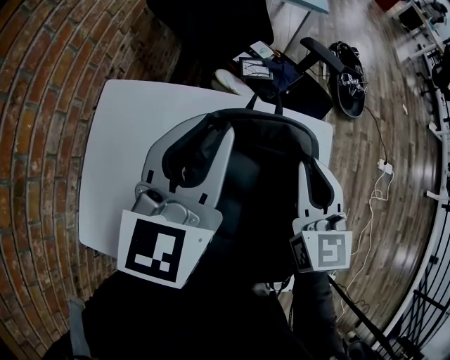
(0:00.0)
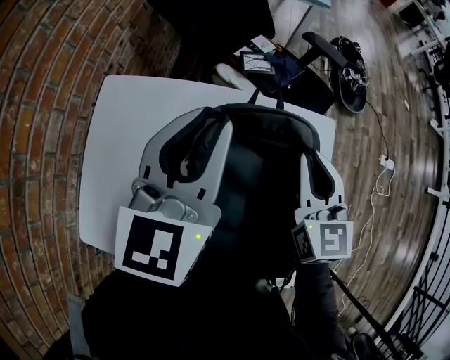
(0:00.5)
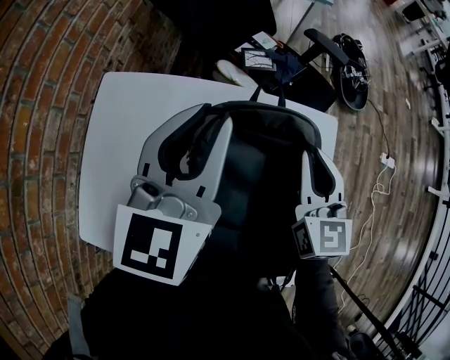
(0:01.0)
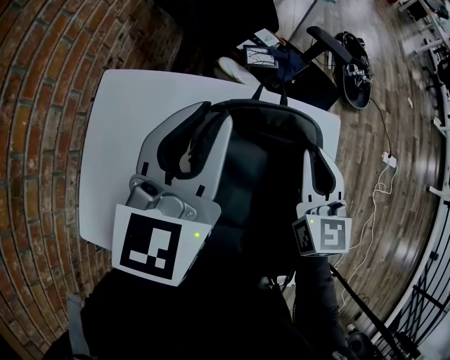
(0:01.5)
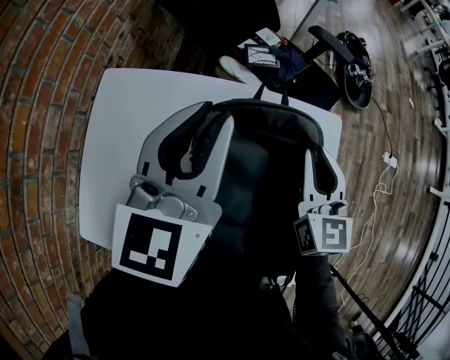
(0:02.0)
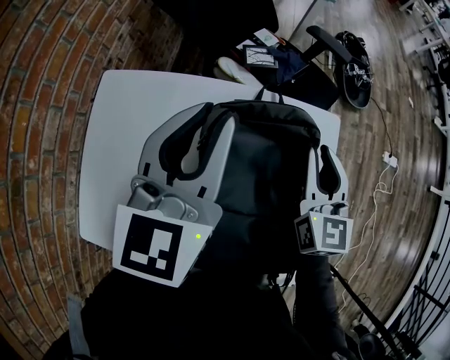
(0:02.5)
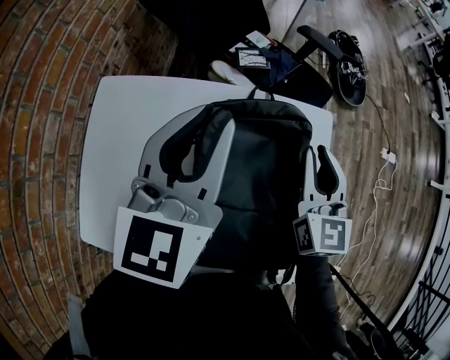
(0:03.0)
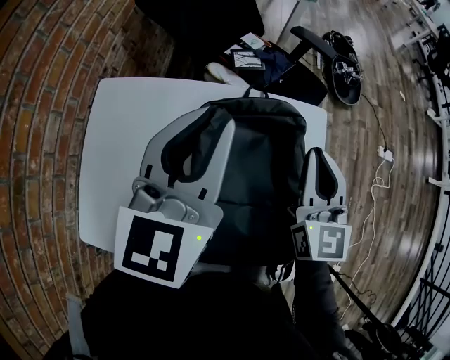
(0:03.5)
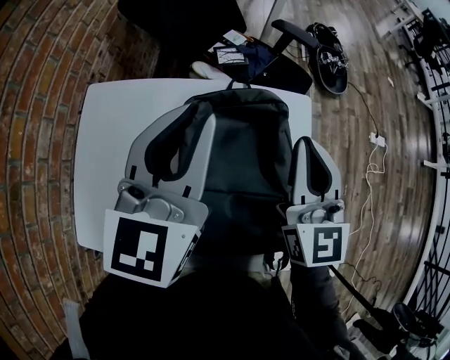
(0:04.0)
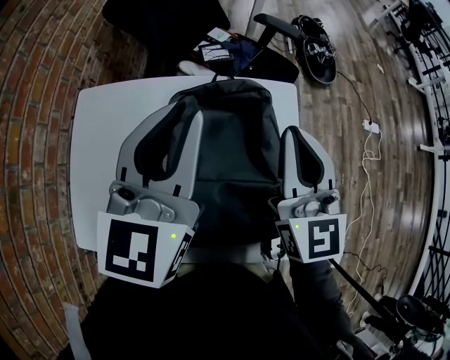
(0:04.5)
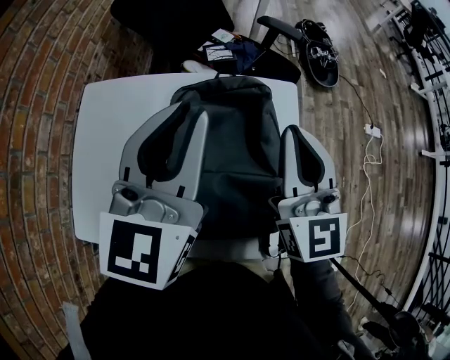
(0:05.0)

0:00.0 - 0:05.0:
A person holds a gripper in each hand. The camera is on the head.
0:00.0 - 0:02.5: The right gripper moves about 5 cm.
0:02.5 - 0:05.0: The left gripper shifts roughly 15 cm backward, to the right and upward. Meanwhile the right gripper goes some 15 cm upward and backward.

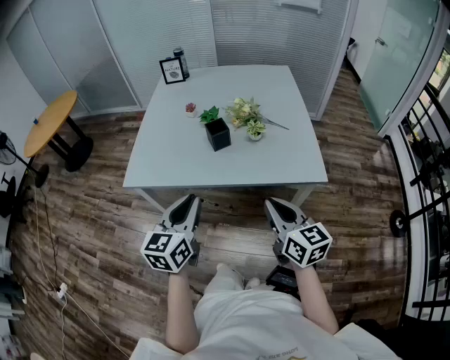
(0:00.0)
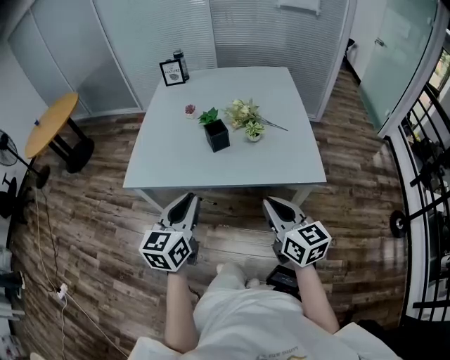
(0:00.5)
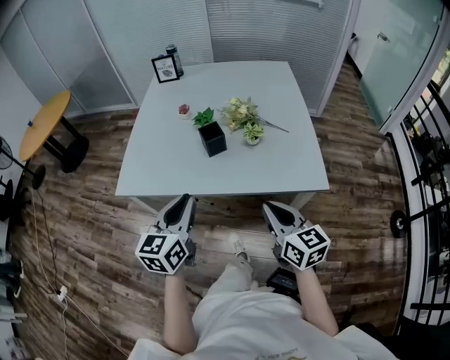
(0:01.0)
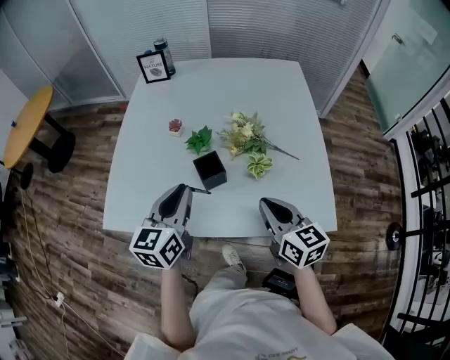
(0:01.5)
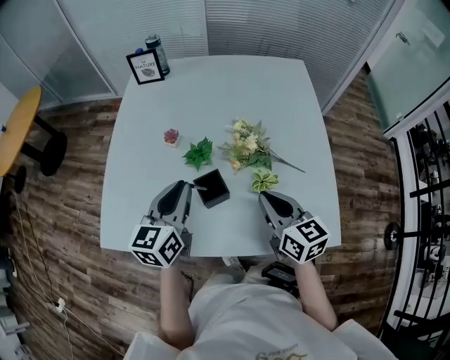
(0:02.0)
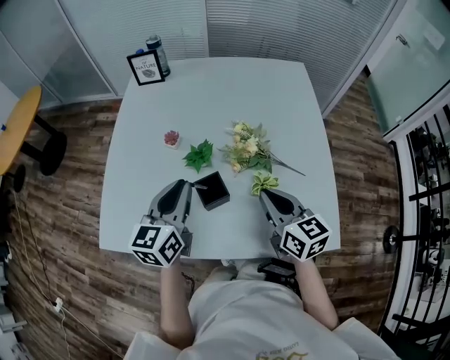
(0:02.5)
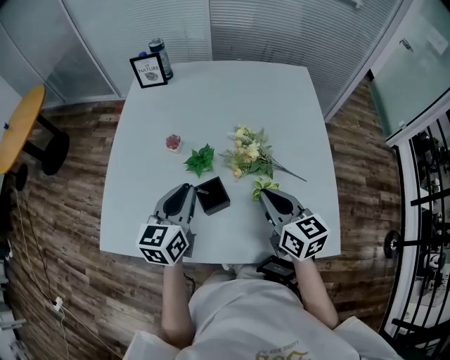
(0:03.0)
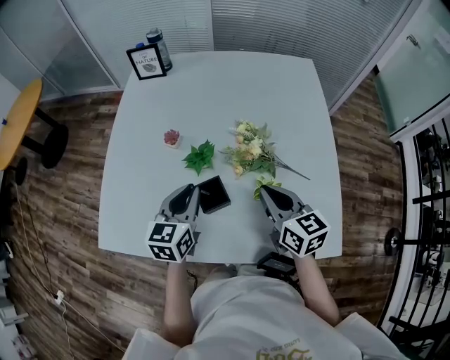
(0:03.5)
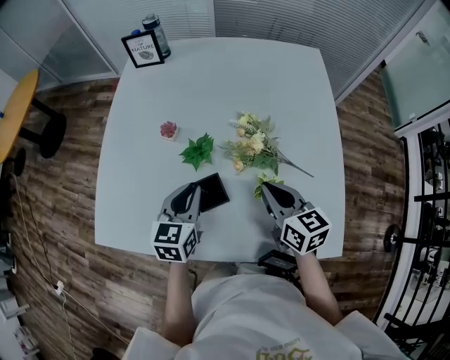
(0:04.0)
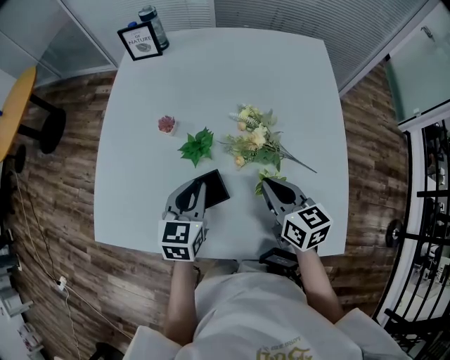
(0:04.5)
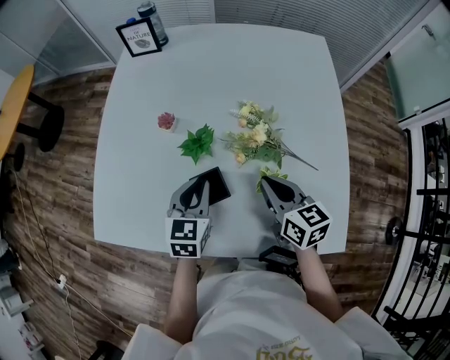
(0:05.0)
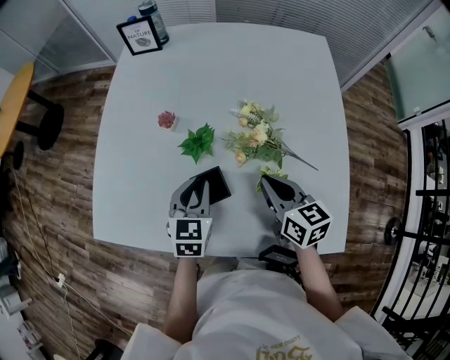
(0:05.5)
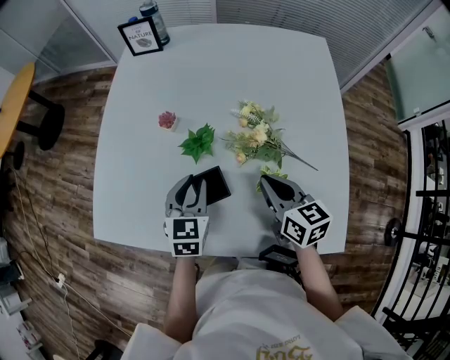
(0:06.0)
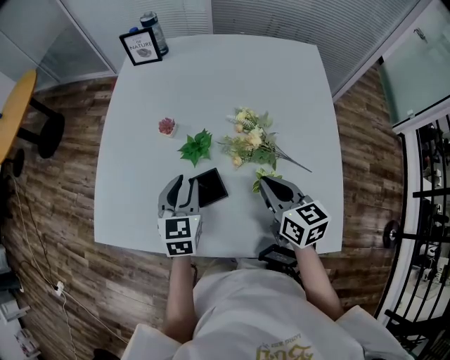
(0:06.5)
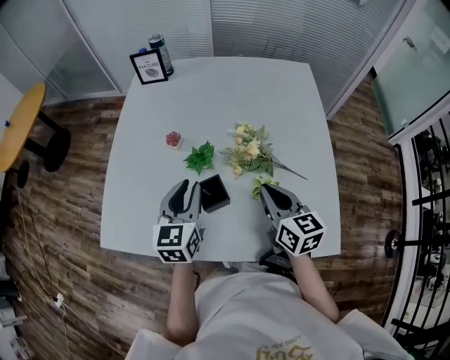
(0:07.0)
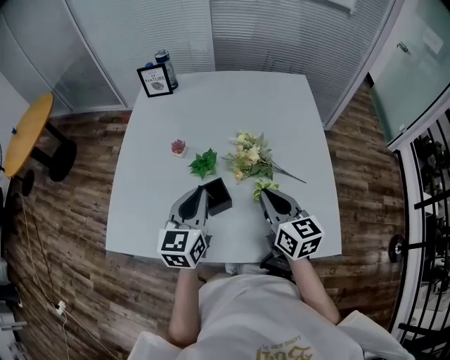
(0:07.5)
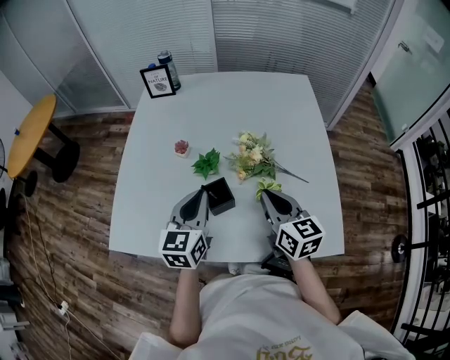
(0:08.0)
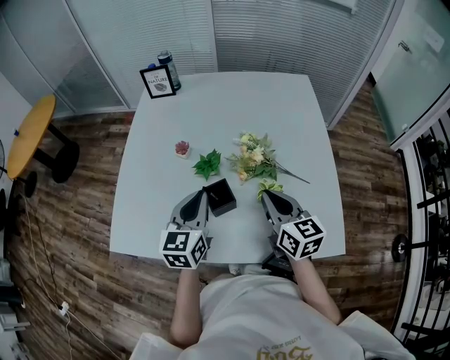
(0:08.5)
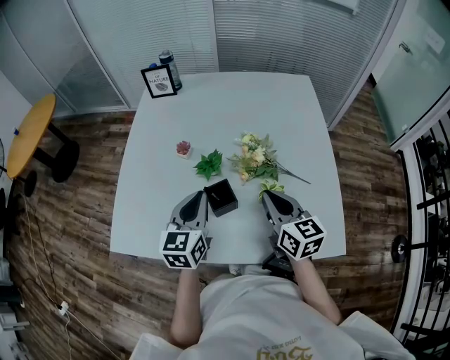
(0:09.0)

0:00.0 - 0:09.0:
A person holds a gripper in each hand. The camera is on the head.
0:00.0 - 0:02.0: Both grippers travel together forward, approximately 40 cm.
0:02.0 - 0:04.5: The right gripper moves forward and downward, approximately 10 cm. The left gripper moves downward, about 10 cm.
0:04.5 - 0:07.0: Both grippers travel together upward, some 5 cm.
0:07.0 - 0:09.0: The left gripper closes.

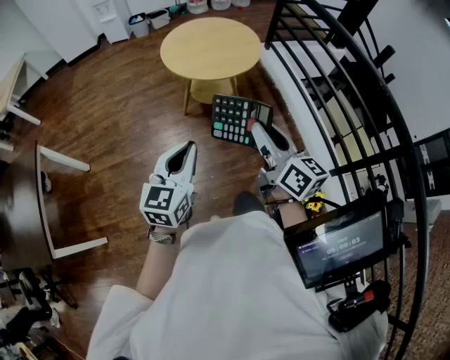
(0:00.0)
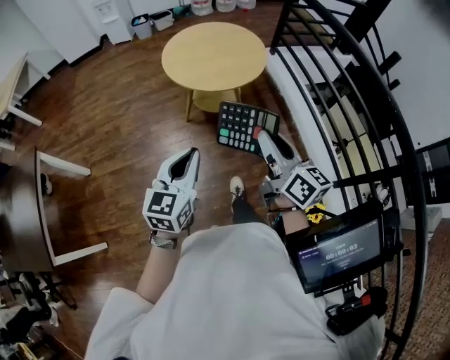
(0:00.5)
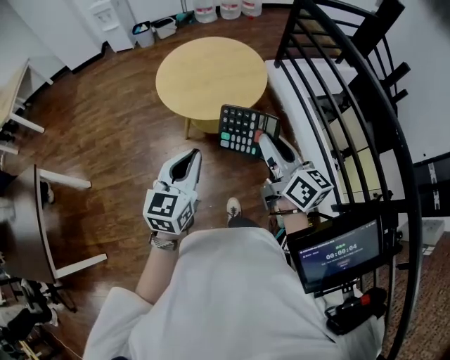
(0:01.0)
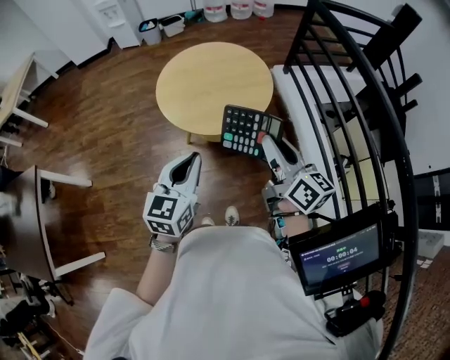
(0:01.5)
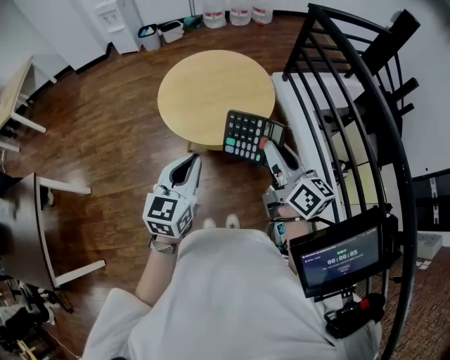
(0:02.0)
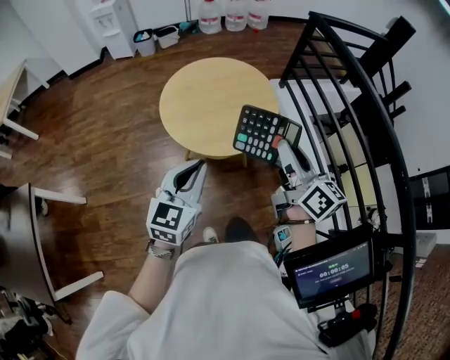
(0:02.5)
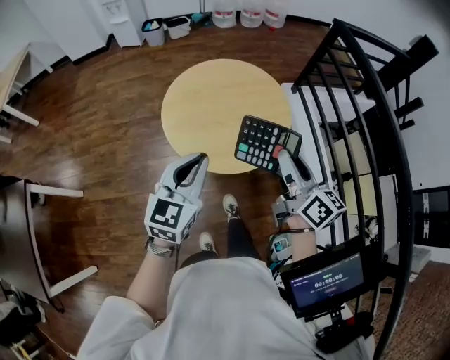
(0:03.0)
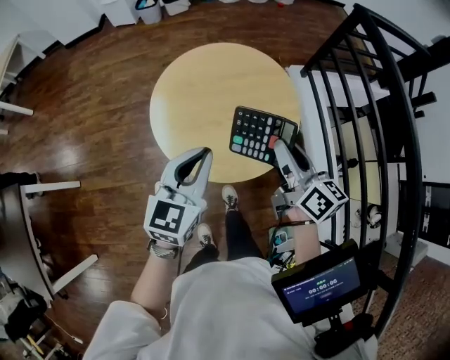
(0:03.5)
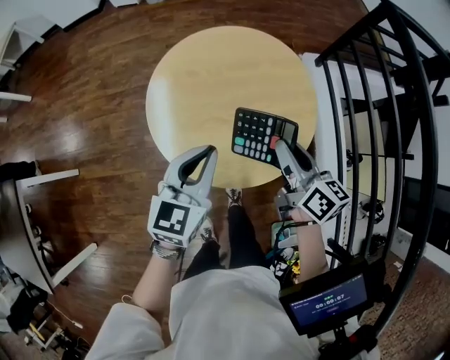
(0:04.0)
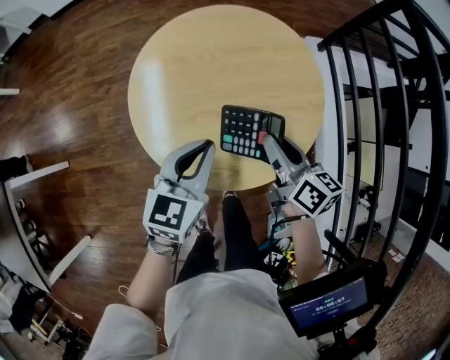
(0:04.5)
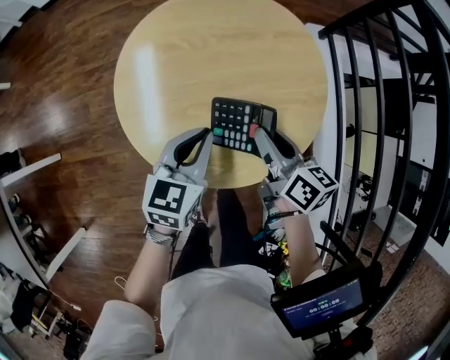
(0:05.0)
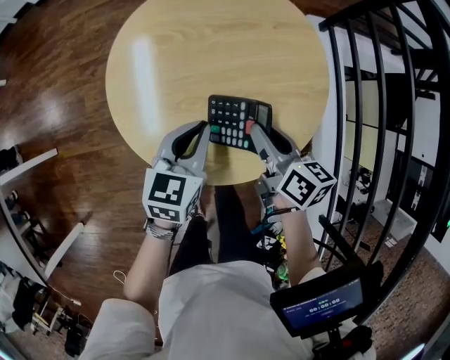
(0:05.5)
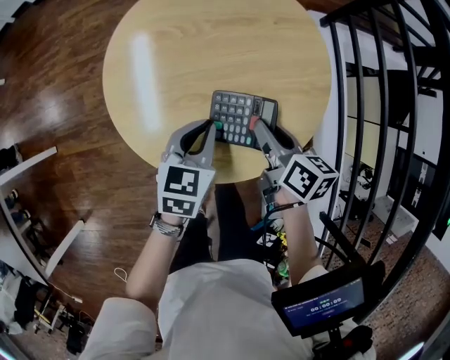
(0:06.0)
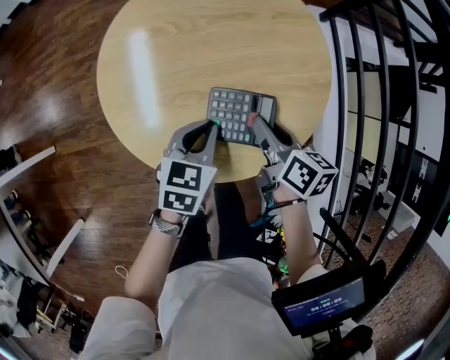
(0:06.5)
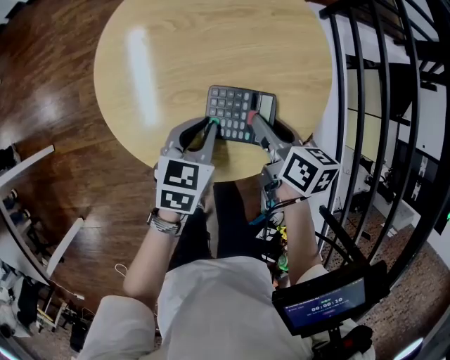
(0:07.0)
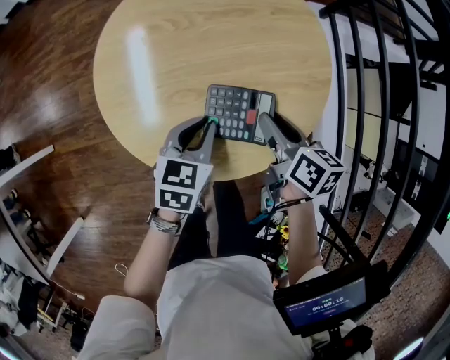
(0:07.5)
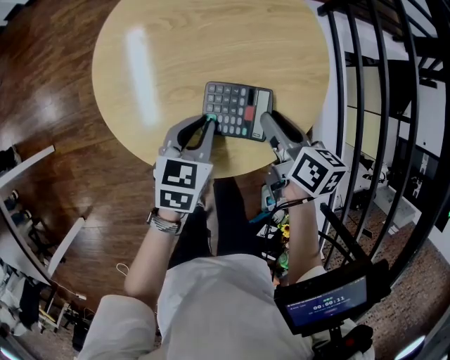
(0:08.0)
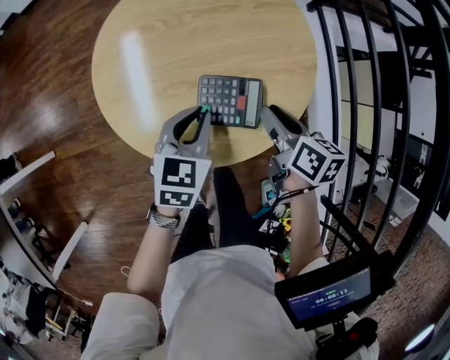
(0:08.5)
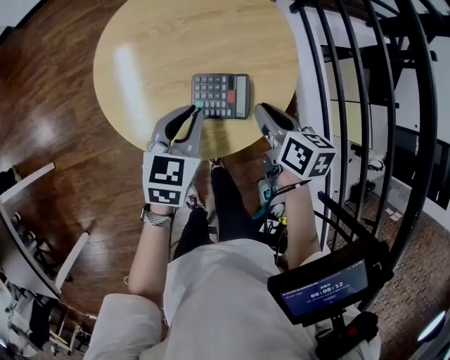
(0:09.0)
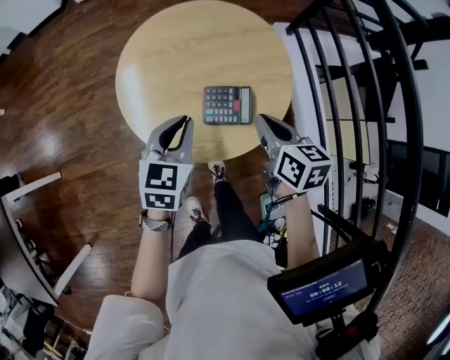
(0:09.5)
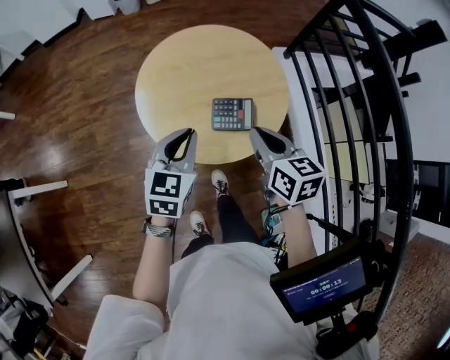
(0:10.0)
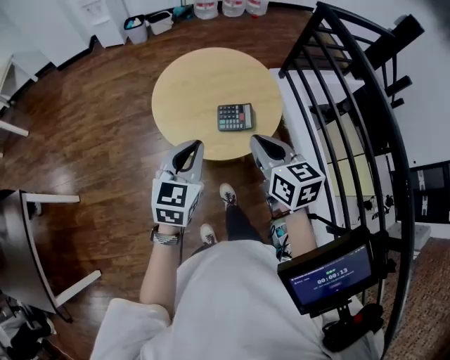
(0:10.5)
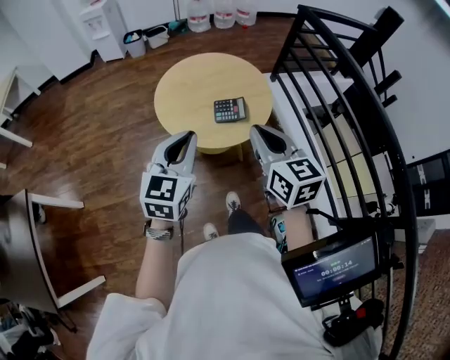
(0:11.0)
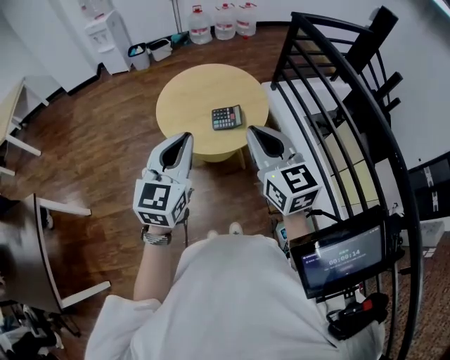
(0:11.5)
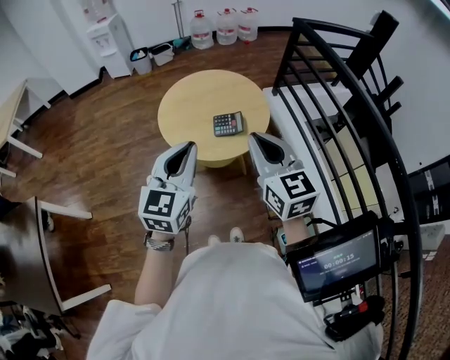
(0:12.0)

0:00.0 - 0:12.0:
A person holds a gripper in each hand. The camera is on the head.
0:00.0 - 0:02.0: Both grippers move forward, some 25 cm.
0:02.0 - 0:04.0: The two grippers go approximately 25 cm forward and downward.
0:04.0 - 0:06.0: The grippers both shift downward by roughly 15 cm. The left gripper changes its angle by about 20 degrees.
0:06.0 - 0:08.0: The grippers stay close to where they were, moving slightly.
0:08.0 - 0:10.0: The left gripper travels upward by some 15 cm. Meanwhile the right gripper moves upward and backward, roughly 20 cm, changes its angle by approximately 30 degrees, and closes its fingers.
0:10.0 - 0:12.0: The two grippers go roughly 25 cm upward and backward. The right gripper changes its angle by about 30 degrees, while the left gripper rotates roughly 20 degrees.

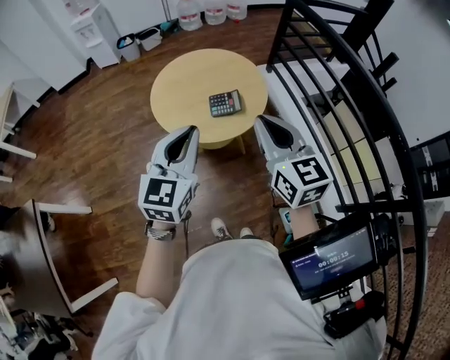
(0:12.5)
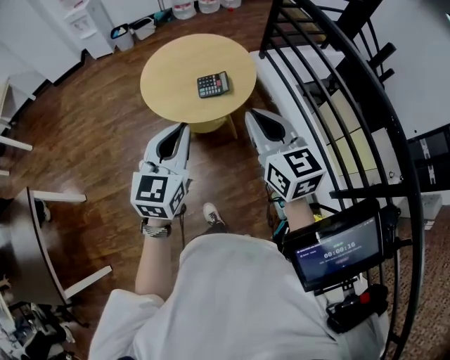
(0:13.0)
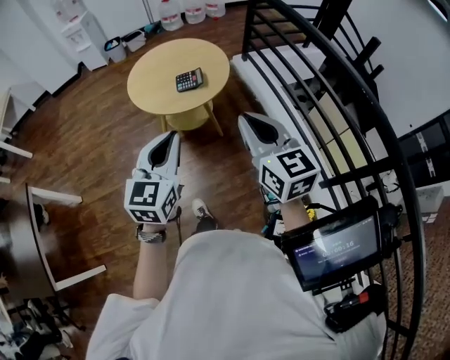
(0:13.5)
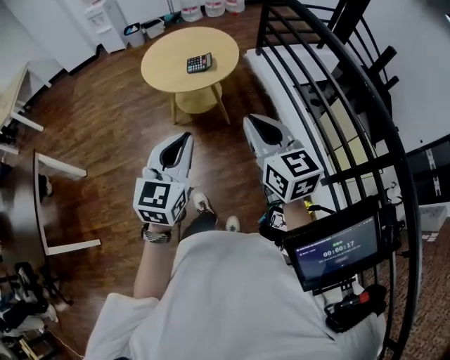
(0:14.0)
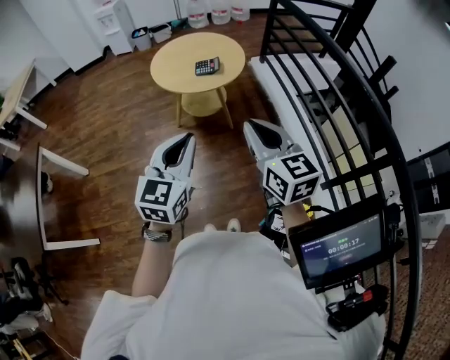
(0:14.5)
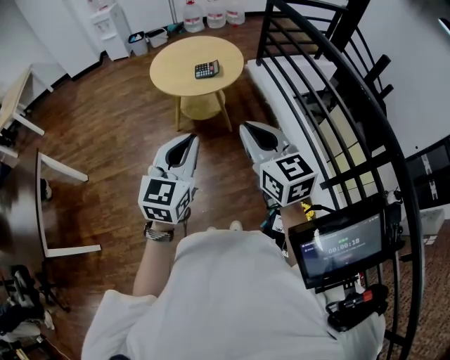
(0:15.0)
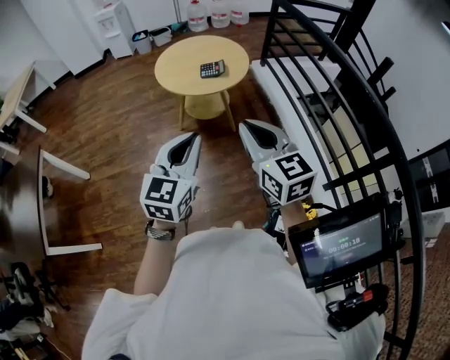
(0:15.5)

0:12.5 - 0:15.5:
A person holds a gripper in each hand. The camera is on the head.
0:12.5 - 0:14.0: Both grippers move backward and to the right, some 30 cm.
0:14.0 - 0:15.5: The right gripper shifts about 10 cm to the left, while the left gripper shifts by some 5 cm.
